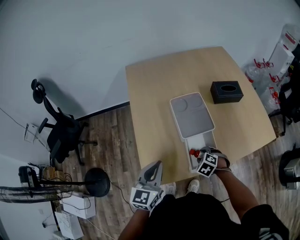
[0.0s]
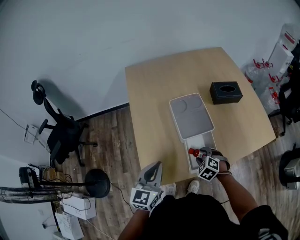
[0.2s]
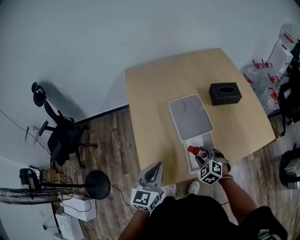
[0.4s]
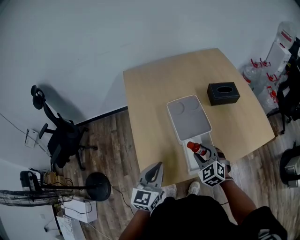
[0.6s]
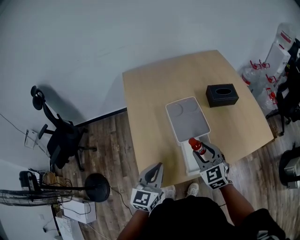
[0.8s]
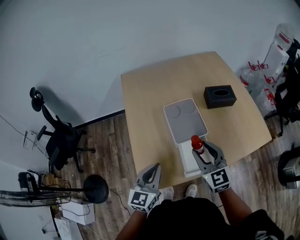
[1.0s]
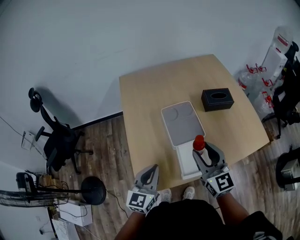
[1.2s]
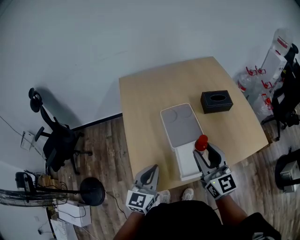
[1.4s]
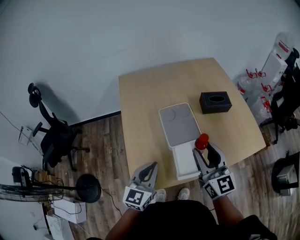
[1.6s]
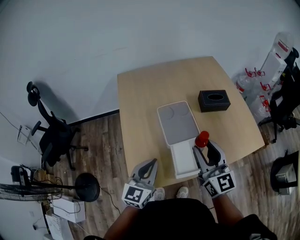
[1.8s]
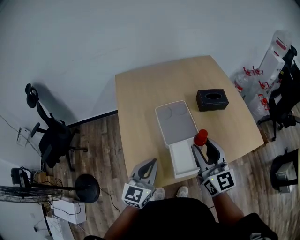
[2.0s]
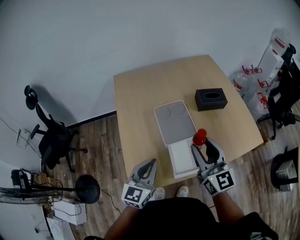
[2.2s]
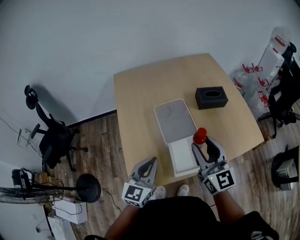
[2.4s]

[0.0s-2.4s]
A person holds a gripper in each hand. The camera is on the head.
0.0s to 1.2s: The right gripper heads upward, covering roughly 30 cm, and tips its fingers upward by some 70 degrees.
1.2s to 2.4s: The grippers move only a little.

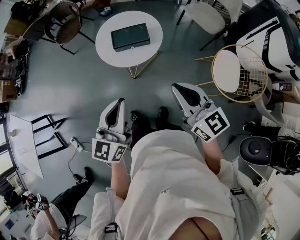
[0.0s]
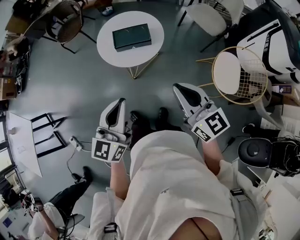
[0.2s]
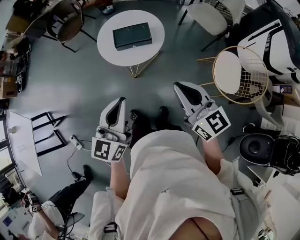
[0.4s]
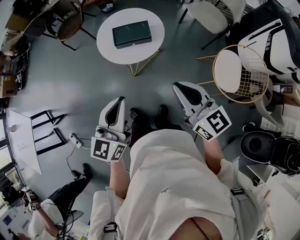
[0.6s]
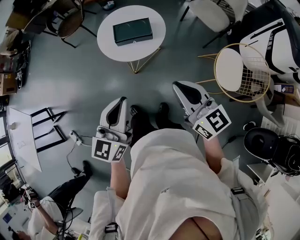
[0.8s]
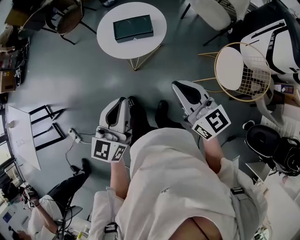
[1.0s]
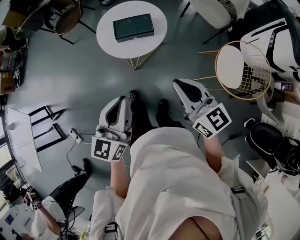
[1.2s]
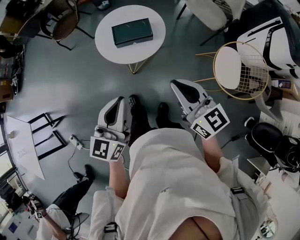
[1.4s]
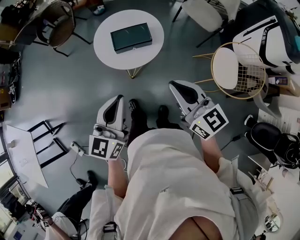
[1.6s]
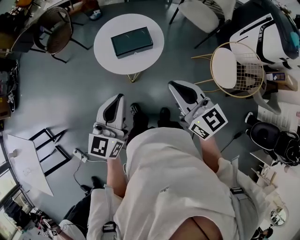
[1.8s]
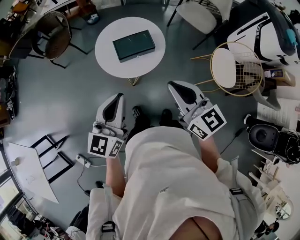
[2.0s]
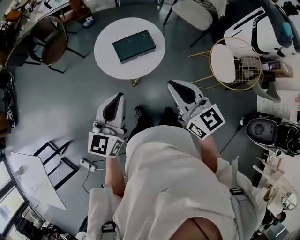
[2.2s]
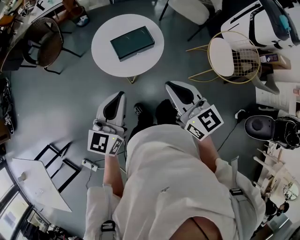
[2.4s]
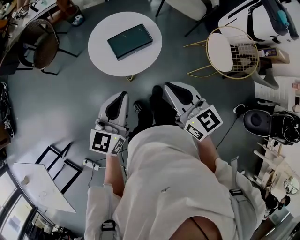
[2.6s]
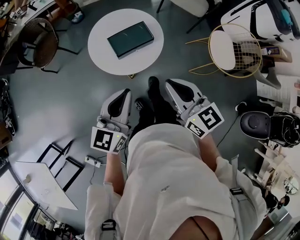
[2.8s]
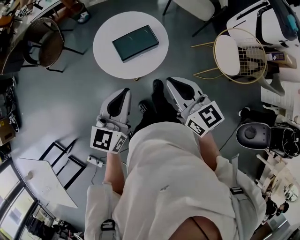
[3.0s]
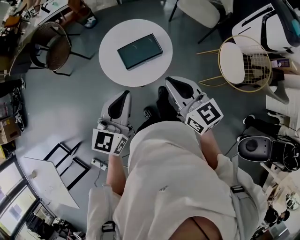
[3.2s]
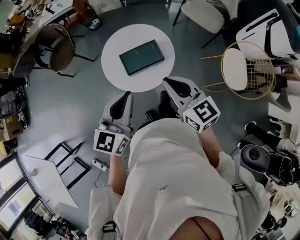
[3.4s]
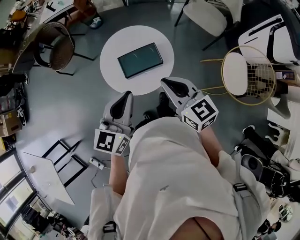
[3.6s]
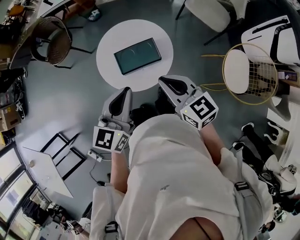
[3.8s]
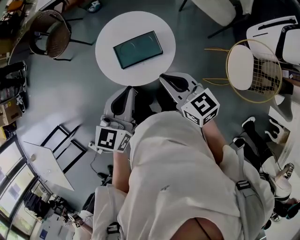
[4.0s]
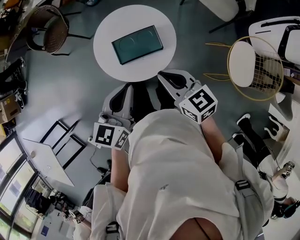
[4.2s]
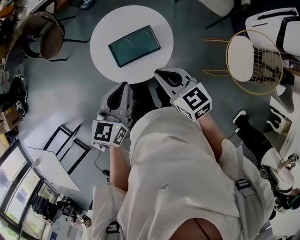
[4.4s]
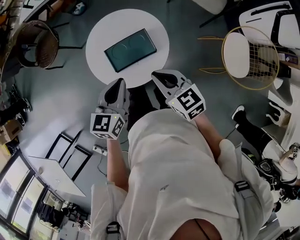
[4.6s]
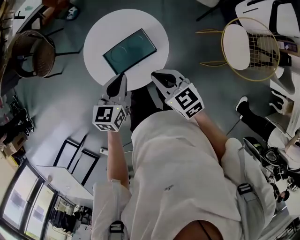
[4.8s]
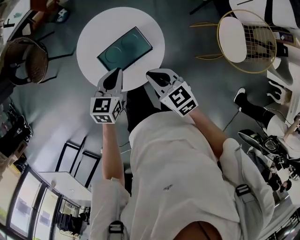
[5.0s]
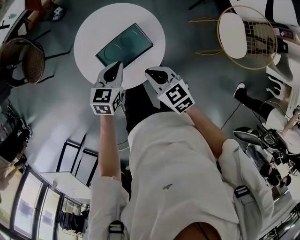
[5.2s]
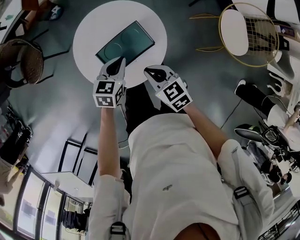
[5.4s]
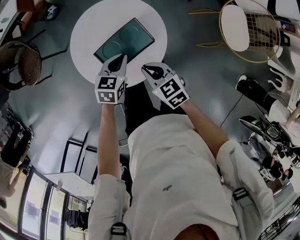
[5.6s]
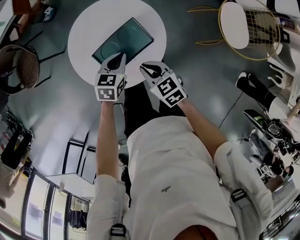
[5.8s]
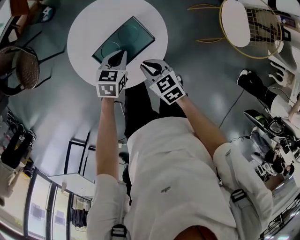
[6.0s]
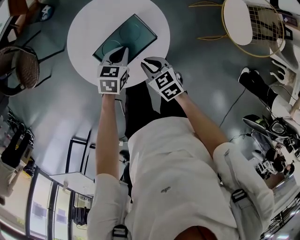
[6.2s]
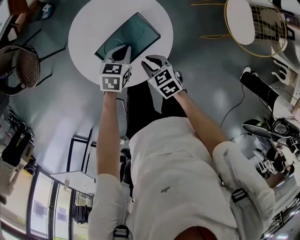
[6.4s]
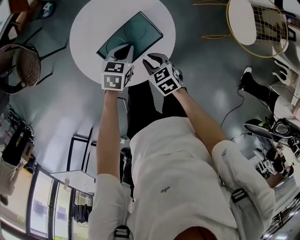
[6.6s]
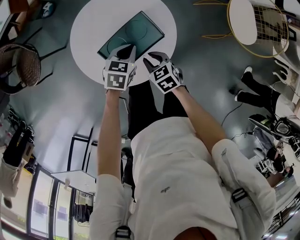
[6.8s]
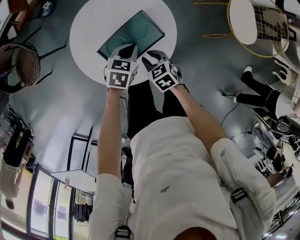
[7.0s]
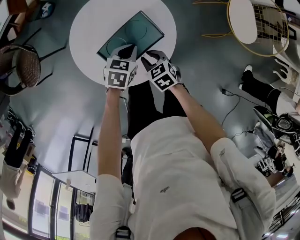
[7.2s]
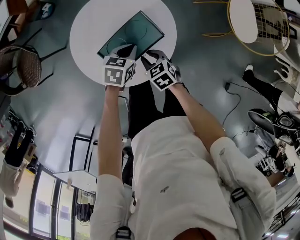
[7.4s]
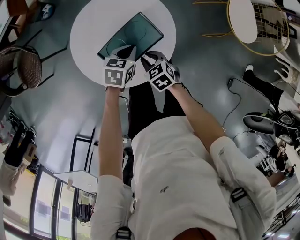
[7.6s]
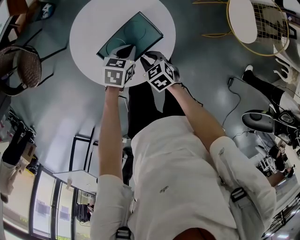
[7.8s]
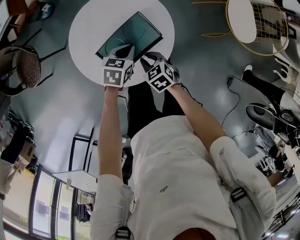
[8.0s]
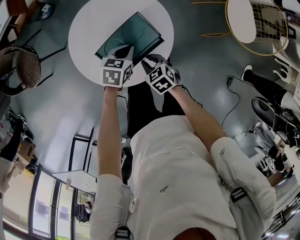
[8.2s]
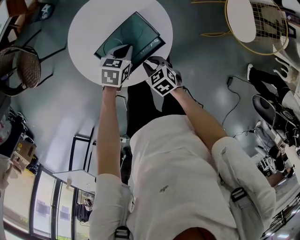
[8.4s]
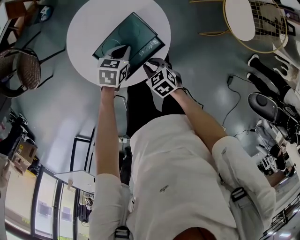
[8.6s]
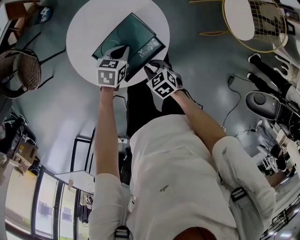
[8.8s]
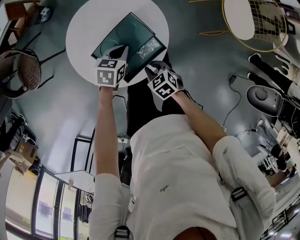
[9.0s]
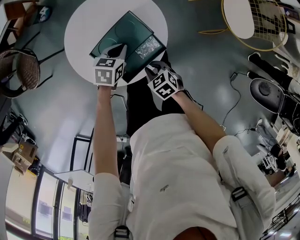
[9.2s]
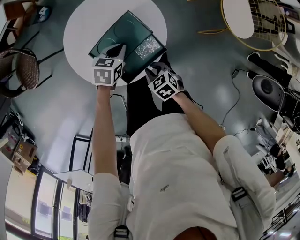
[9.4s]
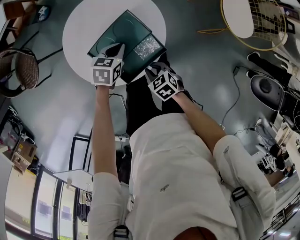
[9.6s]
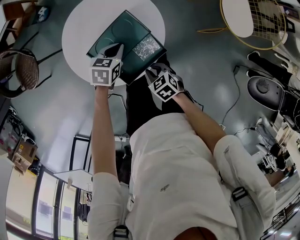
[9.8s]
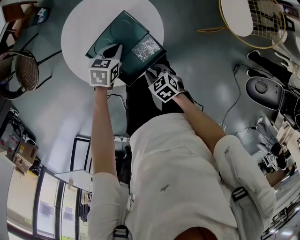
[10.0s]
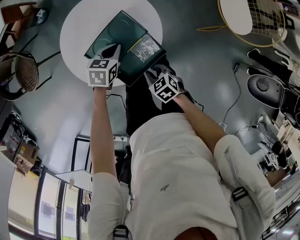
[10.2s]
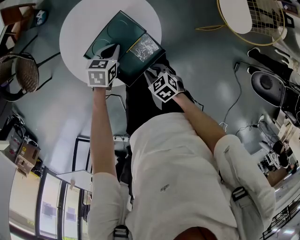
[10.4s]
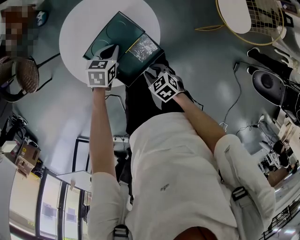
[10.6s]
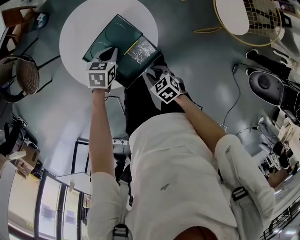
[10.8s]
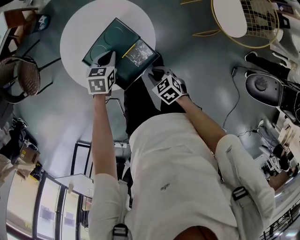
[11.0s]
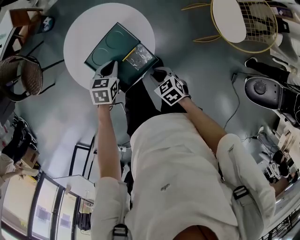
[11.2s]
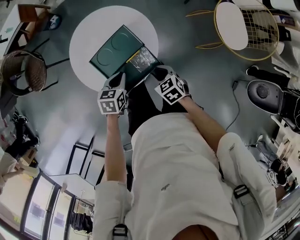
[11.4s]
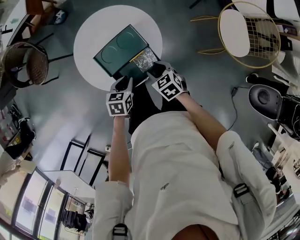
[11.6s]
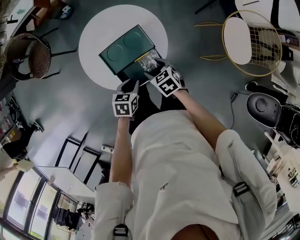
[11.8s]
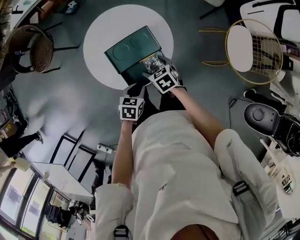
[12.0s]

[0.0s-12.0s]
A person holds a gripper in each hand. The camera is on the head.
0.0s to 1.6s: The left gripper goes about 10 cm forward and to the left, while the right gripper goes about 10 cm to the left and forward.
1.6s to 3.0s: The left gripper travels forward and to the left by about 15 cm. Meanwhile the right gripper heads to the left and forward, covering approximately 15 cm.
3.0s to 4.4s: The right gripper travels forward and downward by roughly 15 cm. The left gripper travels forward, downward and to the right by about 15 cm.
4.4s to 6.0s: The right gripper shifts some 20 cm downward, and turns by about 30 degrees, while the left gripper is displaced downward and forward by about 30 cm, and changes its angle by about 40 degrees.
6.0s to 7.6s: The right gripper moves downward, approximately 10 cm.
7.6s to 9.0s: The right gripper heads backward, covering approximately 5 cm.
9.0s to 10.4s: The grippers stay close to where they were, moving slightly.
10.4s to 12.0s: The right gripper shifts about 10 cm forward and upward, and opens its fingers. Meanwhile the left gripper moves backward, roughly 15 cm.

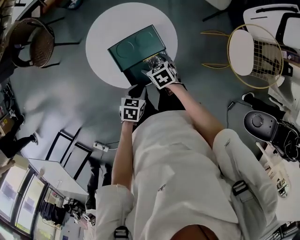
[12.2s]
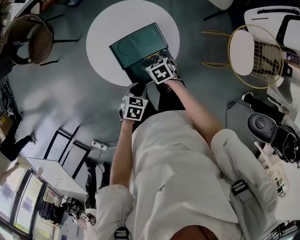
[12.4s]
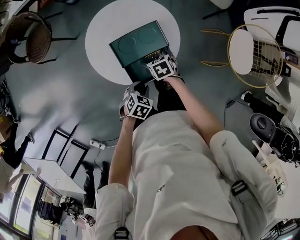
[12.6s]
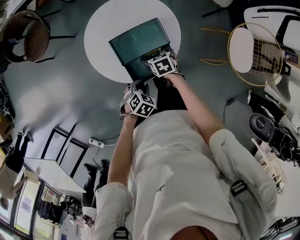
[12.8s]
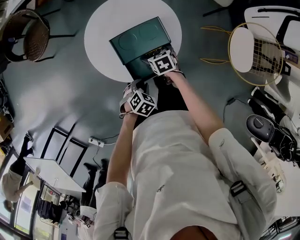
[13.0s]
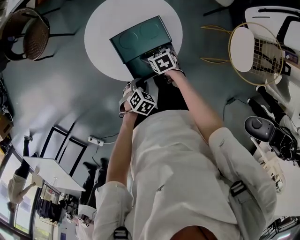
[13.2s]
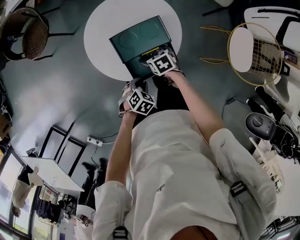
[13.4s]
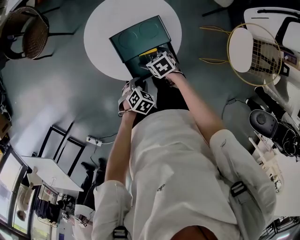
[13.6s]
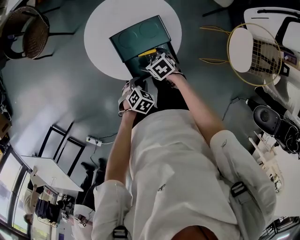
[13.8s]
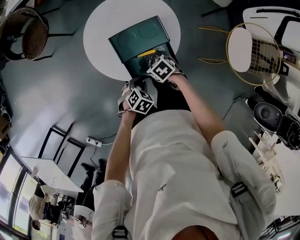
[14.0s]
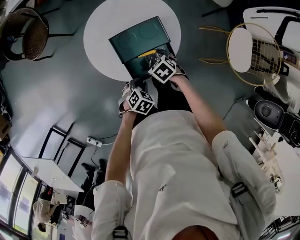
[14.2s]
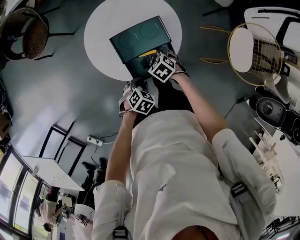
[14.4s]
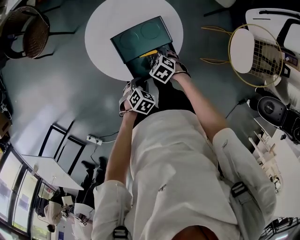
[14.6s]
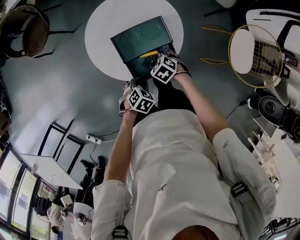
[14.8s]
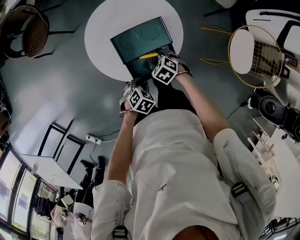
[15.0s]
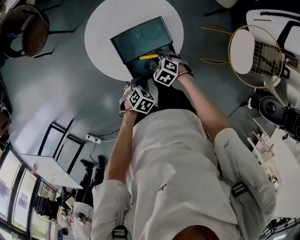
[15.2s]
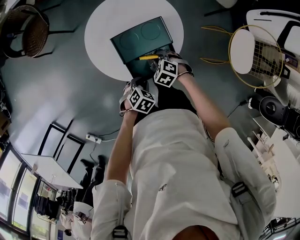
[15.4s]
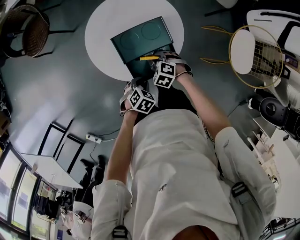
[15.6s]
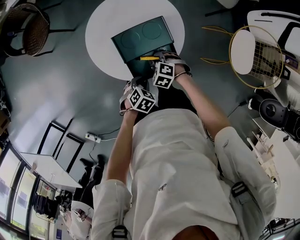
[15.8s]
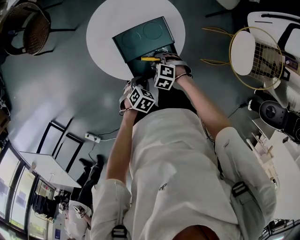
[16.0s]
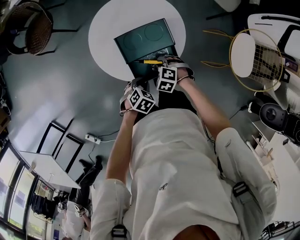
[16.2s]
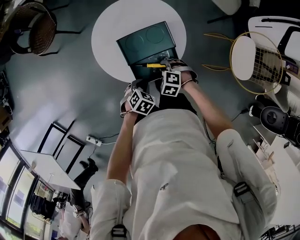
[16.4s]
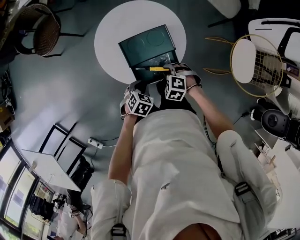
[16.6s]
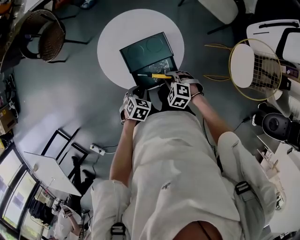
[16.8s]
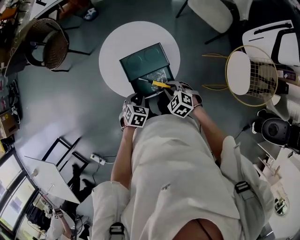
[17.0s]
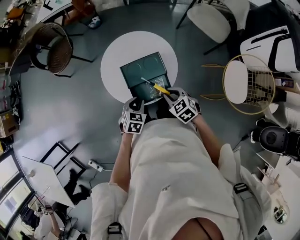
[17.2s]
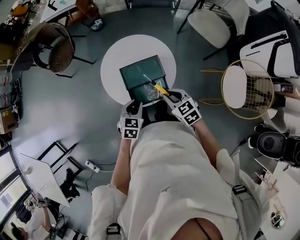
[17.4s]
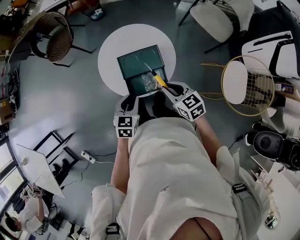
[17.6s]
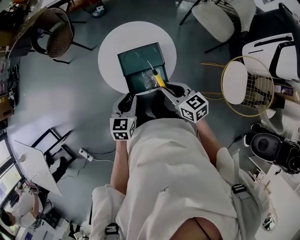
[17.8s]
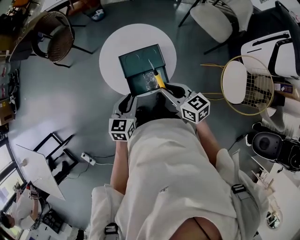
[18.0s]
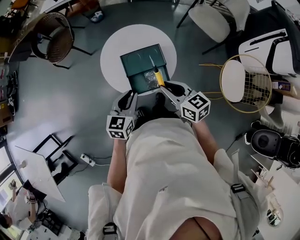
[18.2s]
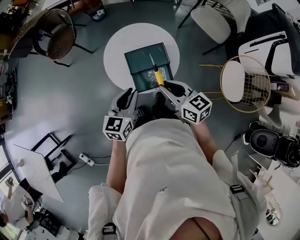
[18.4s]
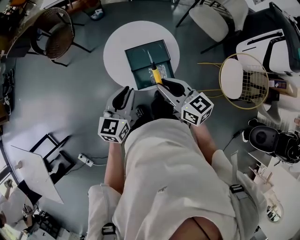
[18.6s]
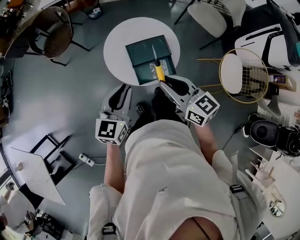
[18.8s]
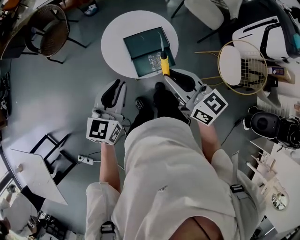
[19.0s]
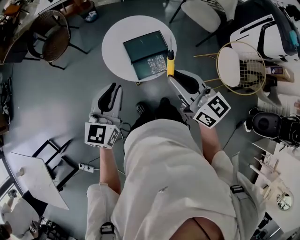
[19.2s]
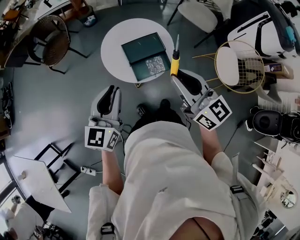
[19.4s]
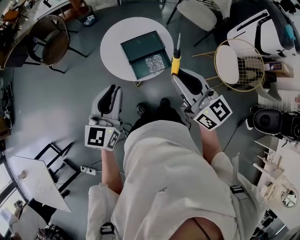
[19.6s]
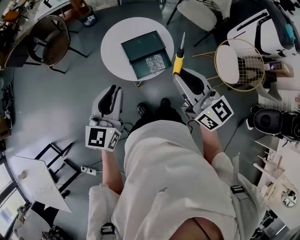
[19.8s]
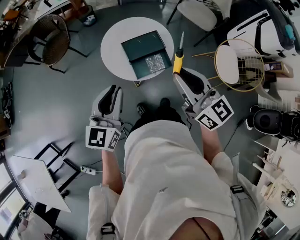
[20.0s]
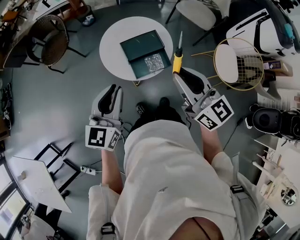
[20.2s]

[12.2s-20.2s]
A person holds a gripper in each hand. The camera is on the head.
12.2s to 13.8s: The left gripper shifts by approximately 5 cm, and rotates about 30 degrees.
13.8s to 15.4s: The right gripper swivels roughly 40 degrees, and closes its fingers.
15.4s to 17.0s: The left gripper heads upward, covering approximately 5 cm. Meanwhile the right gripper goes about 10 cm upward.
17.0s to 18.6s: Both grippers move upward, roughly 25 cm. The left gripper tips its fingers upward by some 50 degrees. The right gripper tilts its fingers about 40 degrees upward.
18.6s to 20.2s: The left gripper is displaced upward, backward and to the left by roughly 10 cm; the right gripper is displaced upward and backward by some 15 cm, and swivels about 20 degrees.

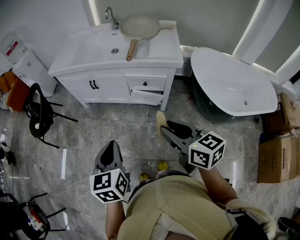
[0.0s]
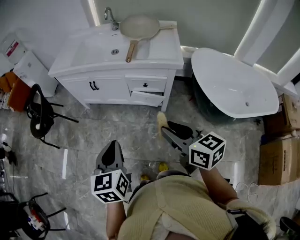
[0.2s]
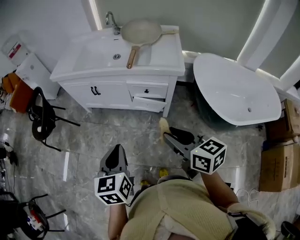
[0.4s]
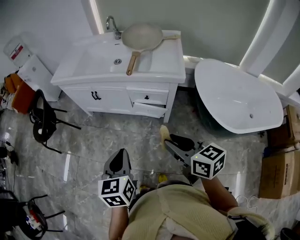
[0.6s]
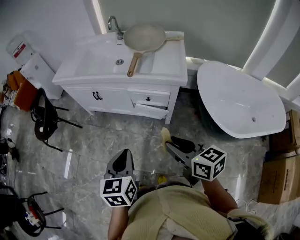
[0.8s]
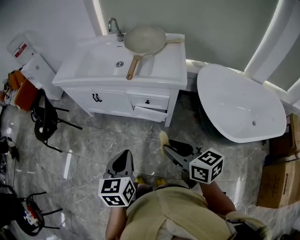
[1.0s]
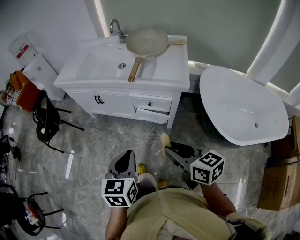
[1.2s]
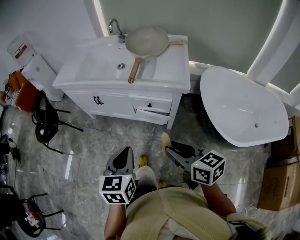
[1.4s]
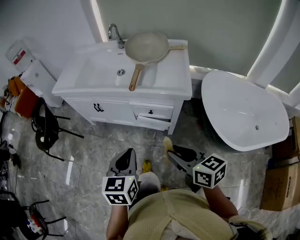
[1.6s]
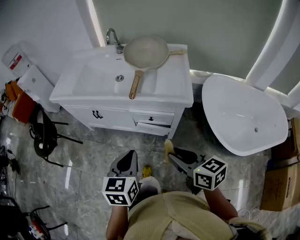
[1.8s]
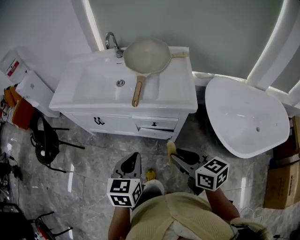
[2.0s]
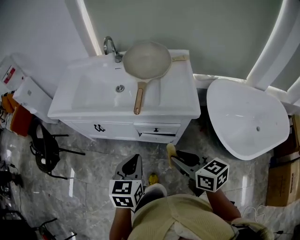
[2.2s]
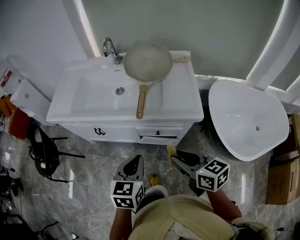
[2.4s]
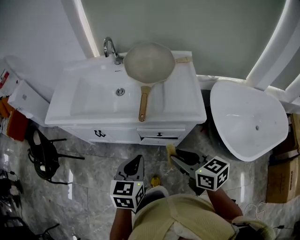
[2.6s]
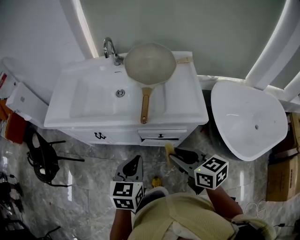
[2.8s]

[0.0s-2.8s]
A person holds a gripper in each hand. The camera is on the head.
0.0s to 1.4s: The grippers both shift to the right and forward by approximately 10 cm.
1.4s to 2.8s: Both grippers travel together forward, roughly 20 cm.
